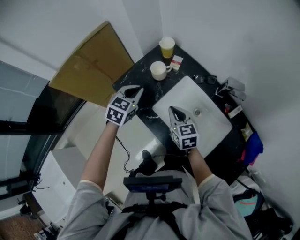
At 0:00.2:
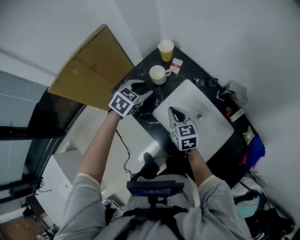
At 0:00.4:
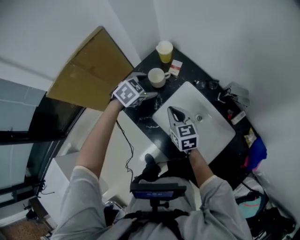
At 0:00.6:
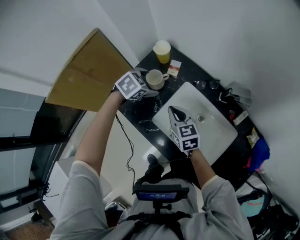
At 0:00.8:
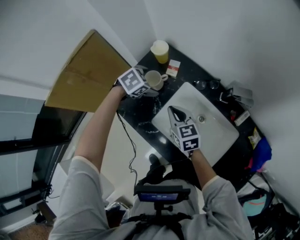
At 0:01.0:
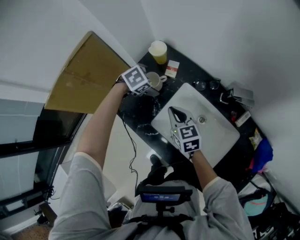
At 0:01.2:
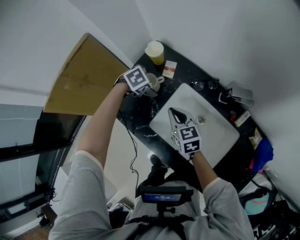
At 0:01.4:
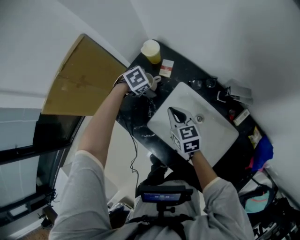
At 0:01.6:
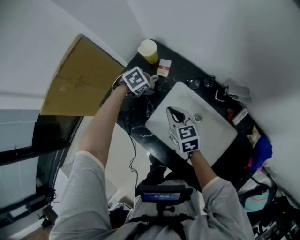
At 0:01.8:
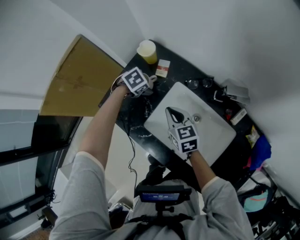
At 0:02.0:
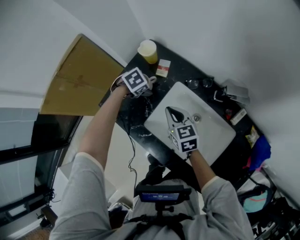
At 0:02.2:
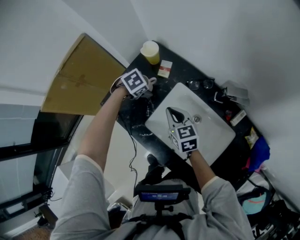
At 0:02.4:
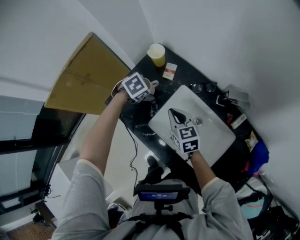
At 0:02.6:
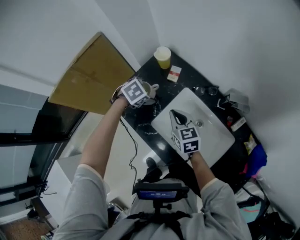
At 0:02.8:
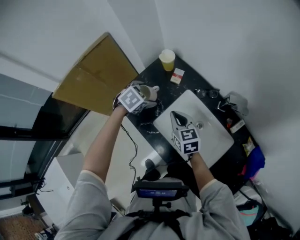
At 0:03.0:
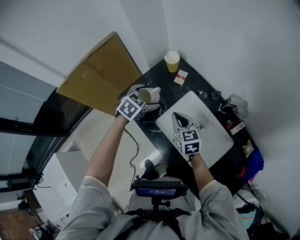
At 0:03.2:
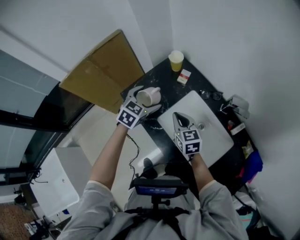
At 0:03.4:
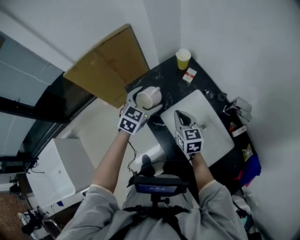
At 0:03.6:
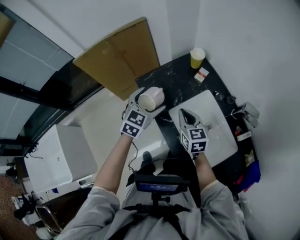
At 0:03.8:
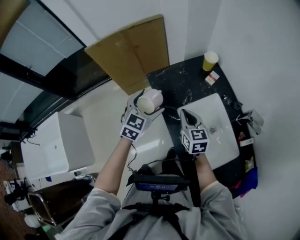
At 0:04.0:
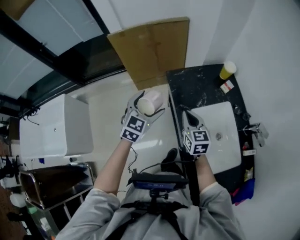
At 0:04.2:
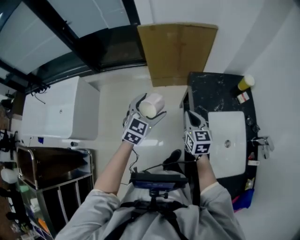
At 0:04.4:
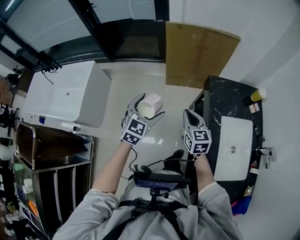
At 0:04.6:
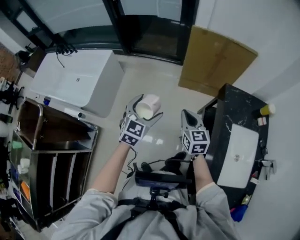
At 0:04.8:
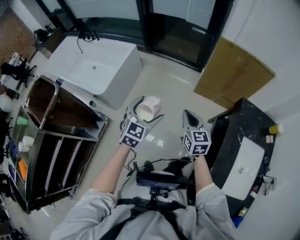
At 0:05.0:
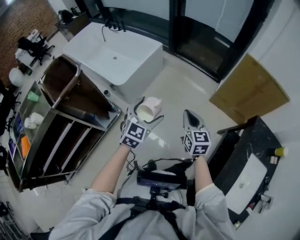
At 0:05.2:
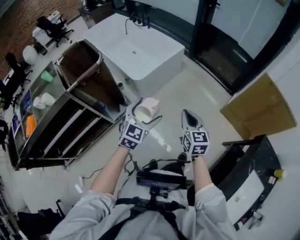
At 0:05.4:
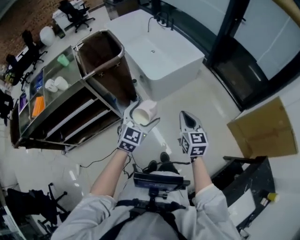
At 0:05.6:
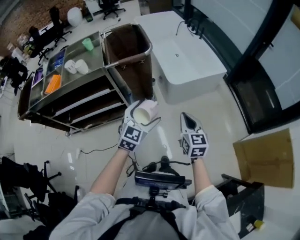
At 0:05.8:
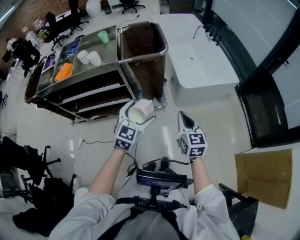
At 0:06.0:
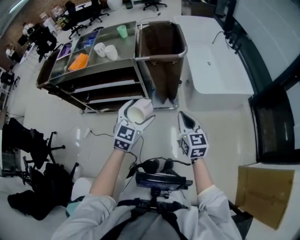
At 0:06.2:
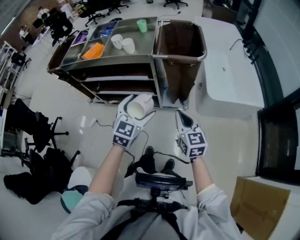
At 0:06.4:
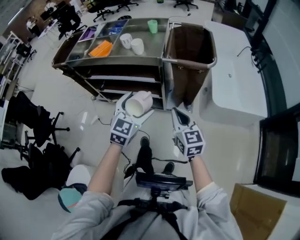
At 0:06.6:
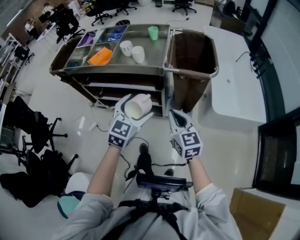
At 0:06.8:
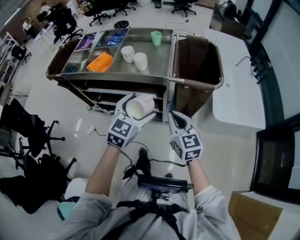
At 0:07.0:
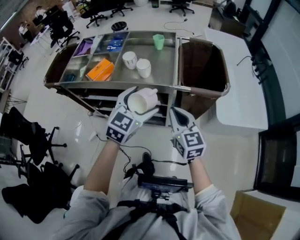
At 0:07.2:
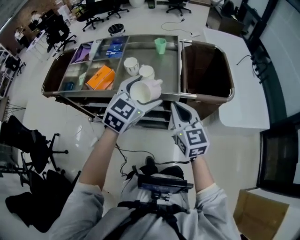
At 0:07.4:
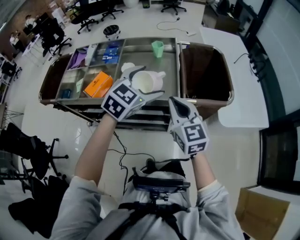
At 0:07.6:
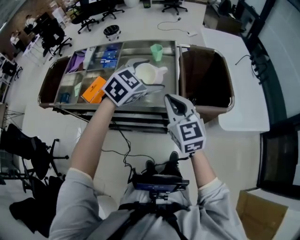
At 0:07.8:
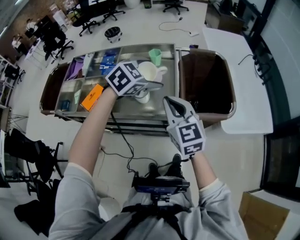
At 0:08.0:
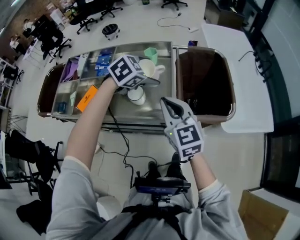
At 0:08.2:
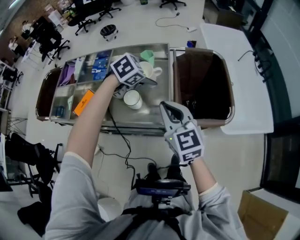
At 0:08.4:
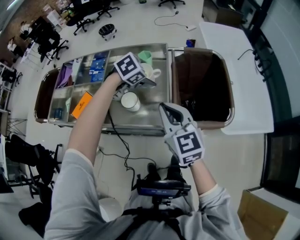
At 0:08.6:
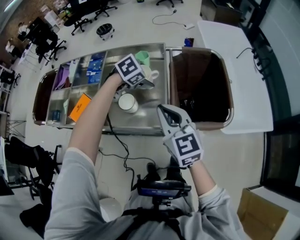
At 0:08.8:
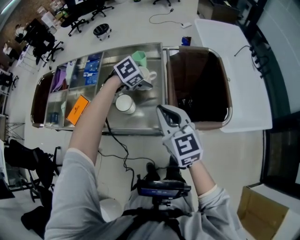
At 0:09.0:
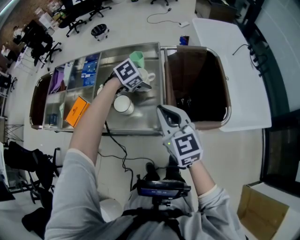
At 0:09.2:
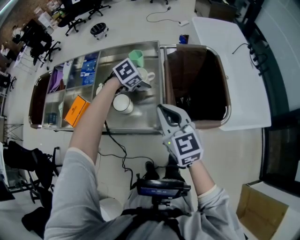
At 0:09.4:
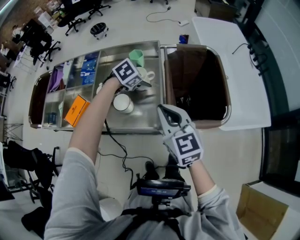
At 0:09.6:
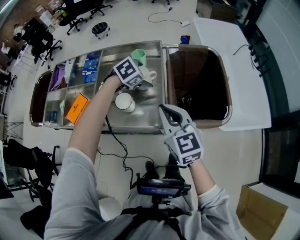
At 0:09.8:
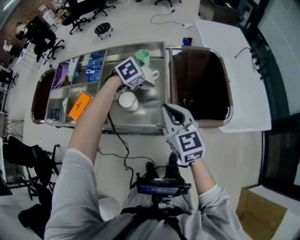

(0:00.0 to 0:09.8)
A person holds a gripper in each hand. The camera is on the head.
0:00.0 - 0:01.4: The left gripper moves downward, roughly 15 cm, tilts its fingers approximately 40 degrees downward, and opens. The right gripper changes place by some 10 cm.
0:01.4 - 0:02.8: The right gripper ends up about 5 cm from where it was; the left gripper moves upward, some 10 cm, and swivels roughly 20 degrees.
0:02.8 - 0:04.2: The right gripper shifts by approximately 25 cm, and swivels roughly 30 degrees, while the left gripper moves roughly 40 cm, and tips its fingers upward by approximately 40 degrees.
0:04.2 - 0:05.6: Both grippers are carried approximately 70 cm. The right gripper rotates about 70 degrees. Meanwhile the left gripper changes its angle by some 80 degrees.
0:05.6 - 0:07.0: The right gripper changes place by some 40 cm, and rotates approximately 40 degrees. Meanwhile the left gripper moves approximately 35 cm, and turns by roughly 20 degrees.
0:07.0 - 0:08.4: The right gripper moves forward, some 20 cm. The left gripper goes roughly 35 cm forward, and angles its fingers downward, by some 40 degrees.

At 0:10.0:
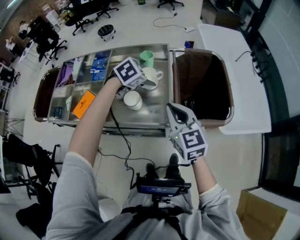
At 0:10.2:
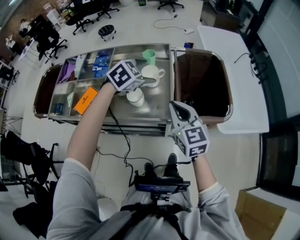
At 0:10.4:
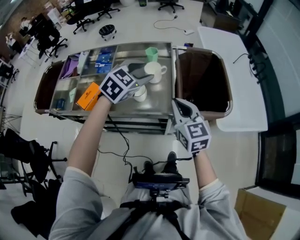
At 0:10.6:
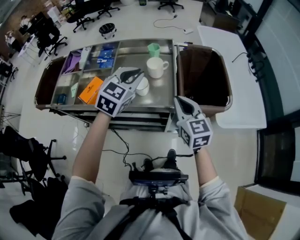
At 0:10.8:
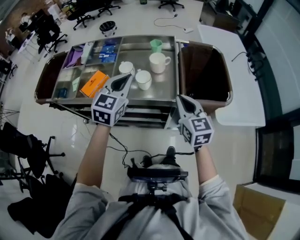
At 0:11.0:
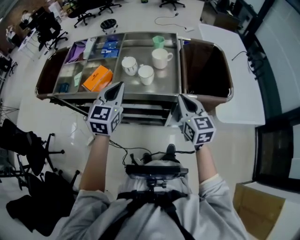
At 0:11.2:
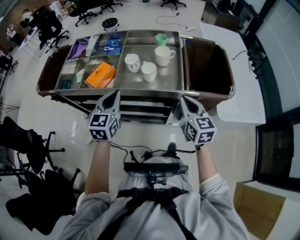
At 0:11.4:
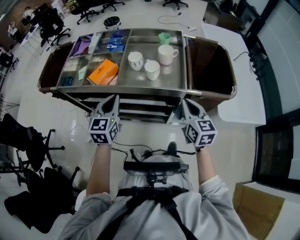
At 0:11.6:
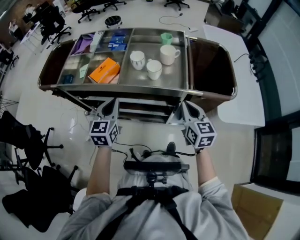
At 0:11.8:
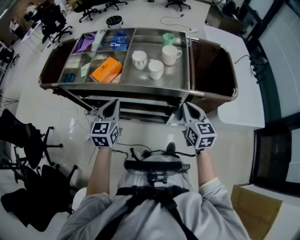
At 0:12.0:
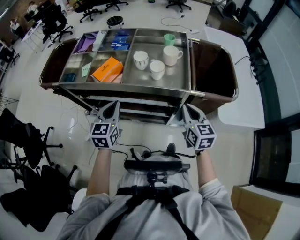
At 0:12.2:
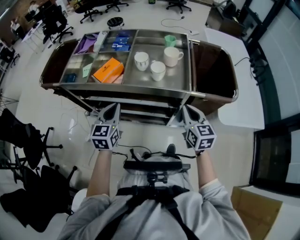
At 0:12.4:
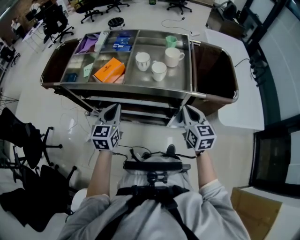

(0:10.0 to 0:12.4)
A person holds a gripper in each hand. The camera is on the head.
0:10.0 - 0:11.2: The left gripper moves backward and to the left, roughly 35 cm, tips its fingers upward by approximately 40 degrees, and closes. Meanwhile the right gripper moves backward, approximately 10 cm.
0:11.2 - 0:12.4: The left gripper moves downward, to the left and backward, about 10 cm.

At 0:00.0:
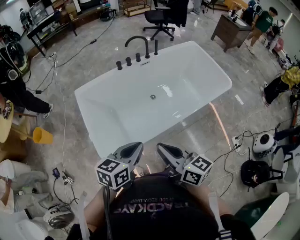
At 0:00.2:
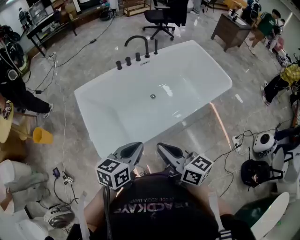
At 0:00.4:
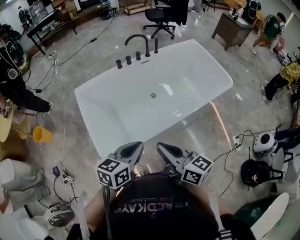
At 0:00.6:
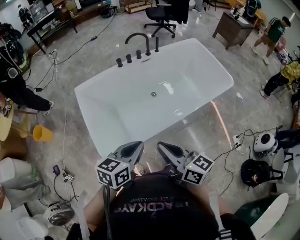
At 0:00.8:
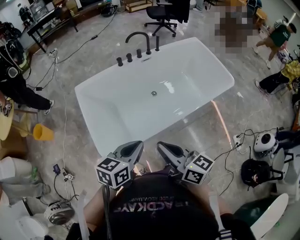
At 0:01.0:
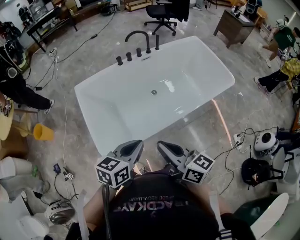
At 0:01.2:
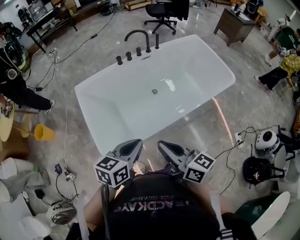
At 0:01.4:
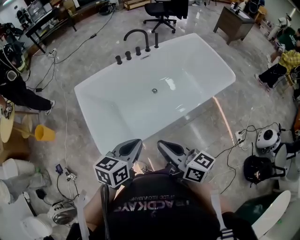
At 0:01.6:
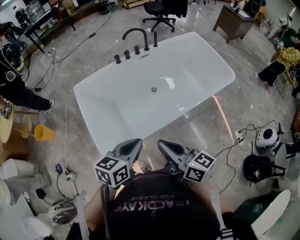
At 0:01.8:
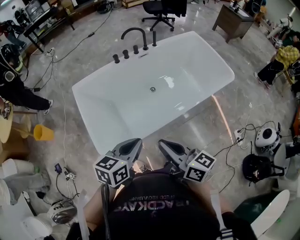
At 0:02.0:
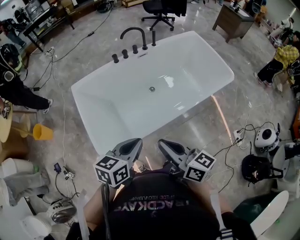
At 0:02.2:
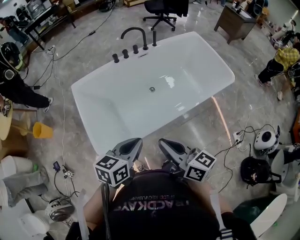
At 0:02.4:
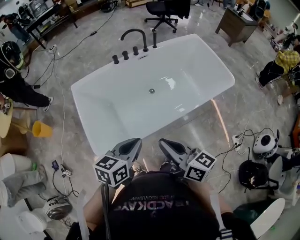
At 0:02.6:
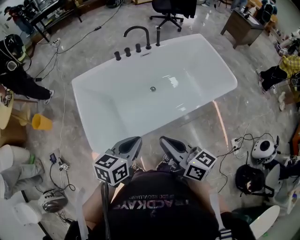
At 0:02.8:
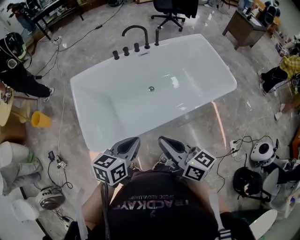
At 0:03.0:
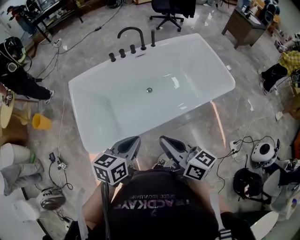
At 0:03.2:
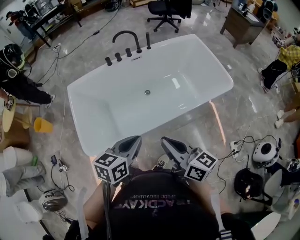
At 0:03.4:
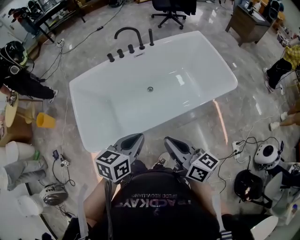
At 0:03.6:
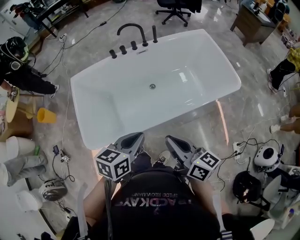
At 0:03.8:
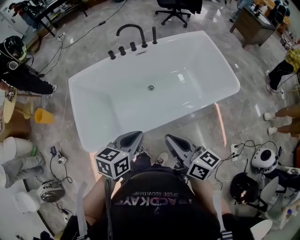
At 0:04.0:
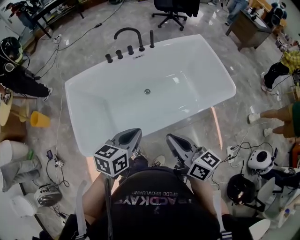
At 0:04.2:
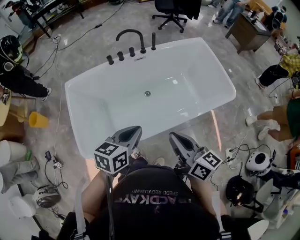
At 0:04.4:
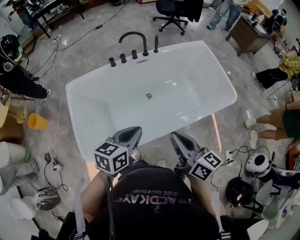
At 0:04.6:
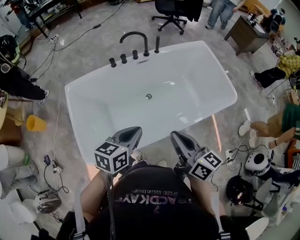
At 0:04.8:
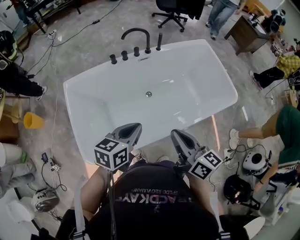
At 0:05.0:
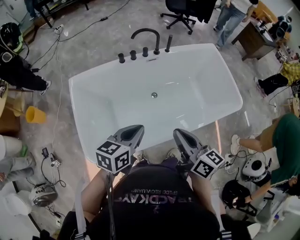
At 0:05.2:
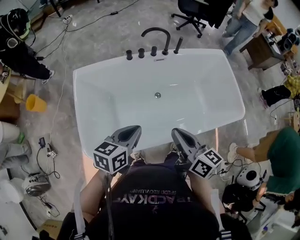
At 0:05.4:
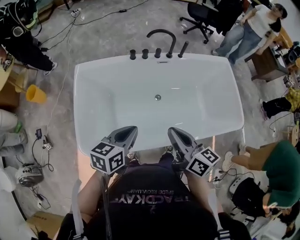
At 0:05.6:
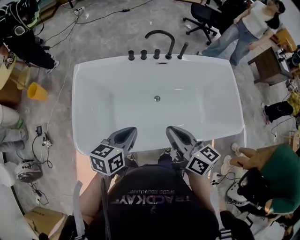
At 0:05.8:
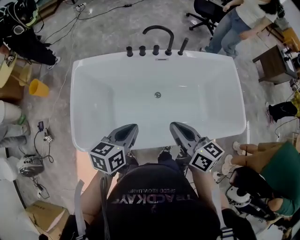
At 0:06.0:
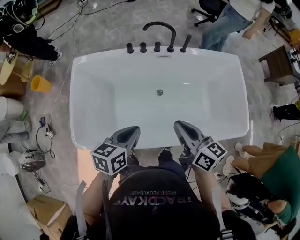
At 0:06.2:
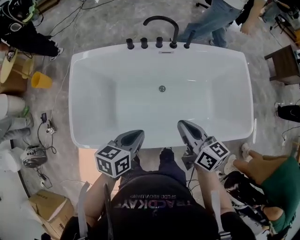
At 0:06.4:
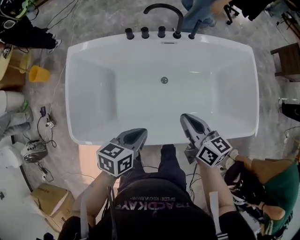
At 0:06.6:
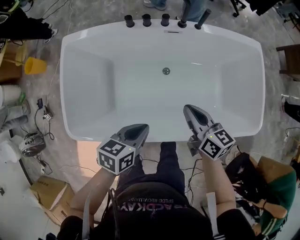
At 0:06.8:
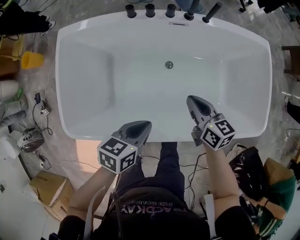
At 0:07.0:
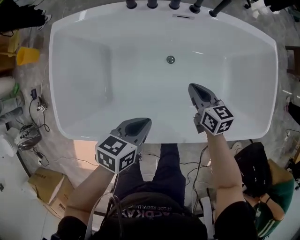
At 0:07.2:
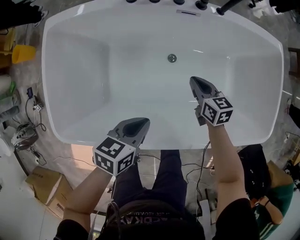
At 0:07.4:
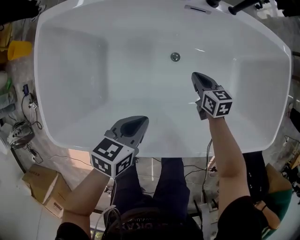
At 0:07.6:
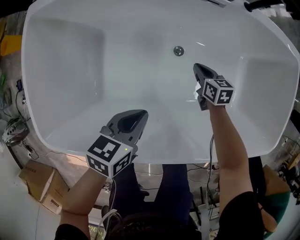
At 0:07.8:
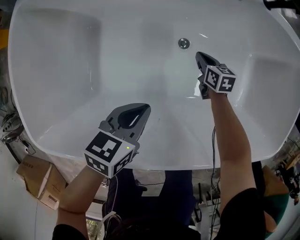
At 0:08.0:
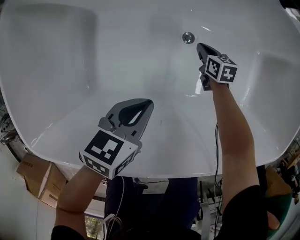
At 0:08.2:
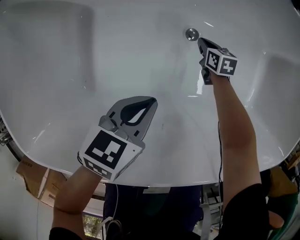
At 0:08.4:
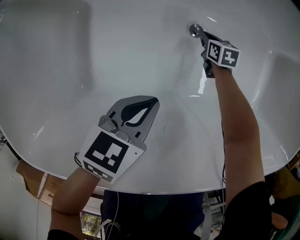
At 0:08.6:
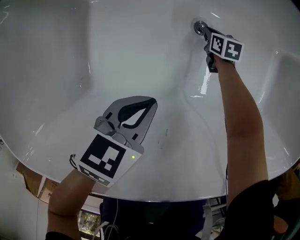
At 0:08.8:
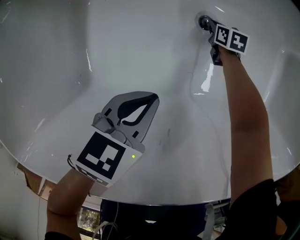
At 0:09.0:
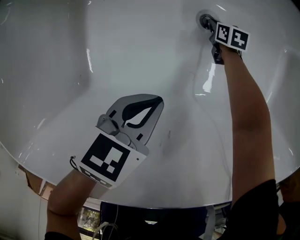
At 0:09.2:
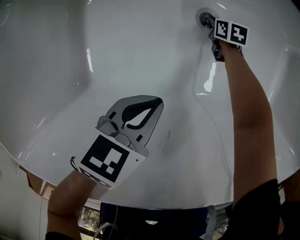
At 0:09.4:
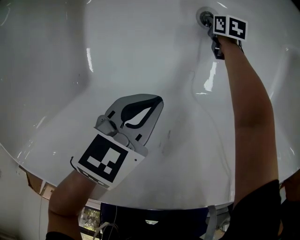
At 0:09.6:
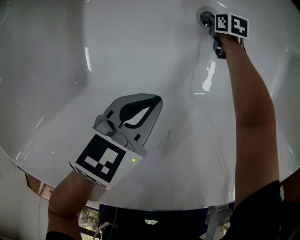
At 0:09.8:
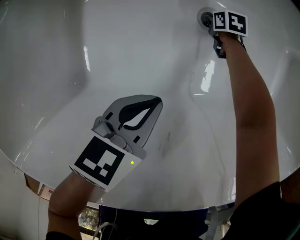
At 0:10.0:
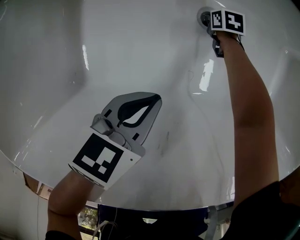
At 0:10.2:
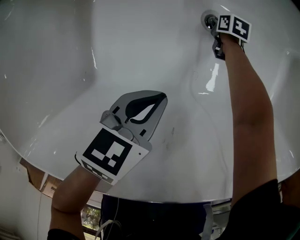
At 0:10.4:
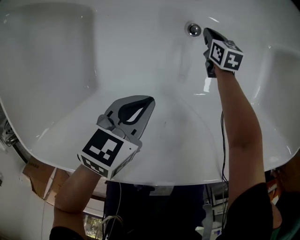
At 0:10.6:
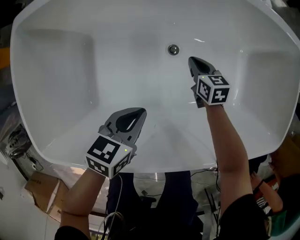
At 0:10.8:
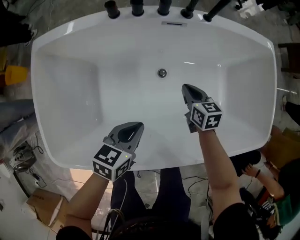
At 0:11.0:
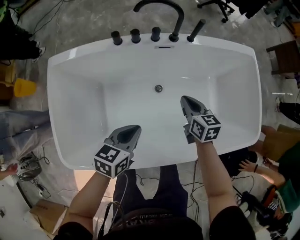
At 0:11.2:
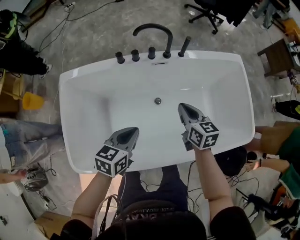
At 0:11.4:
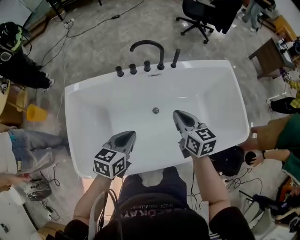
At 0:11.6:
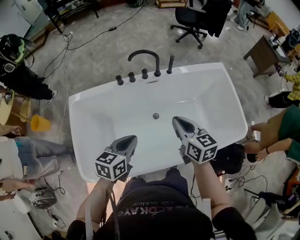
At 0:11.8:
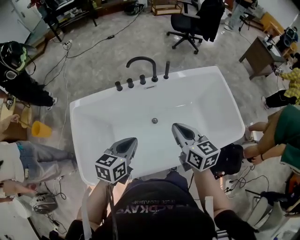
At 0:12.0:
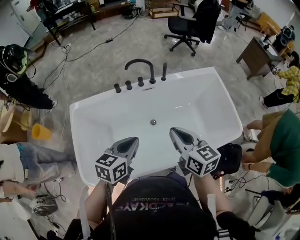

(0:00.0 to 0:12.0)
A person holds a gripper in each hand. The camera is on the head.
0:00.0 - 0:01.6: The grippers move only a little.
0:01.6 - 0:03.0: Both grippers move to the right, about 10 cm.
0:03.0 - 0:04.4: Both grippers move forward, about 10 cm.
0:04.4 - 0:06.0: The right gripper shifts approximately 15 cm forward, and changes its angle by approximately 20 degrees, while the left gripper heads forward, covering roughly 5 cm, travels to the left and back again, about 5 cm each way, and rotates some 20 degrees.
0:06.0 - 0:07.6: The right gripper travels downward and forward by some 50 cm, and angles its fingers downward, by some 30 degrees. Meanwhile the left gripper heads downward, covering some 25 cm.
0:07.6 - 0:09.0: The right gripper travels downward by roughly 30 cm; the left gripper moves downward, approximately 15 cm.
0:09.0 - 0:10.4: The left gripper is displaced upward by some 5 cm. The right gripper heads upward, covering about 10 cm.
0:10.4 - 0:12.0: The right gripper goes about 70 cm upward, and tips its fingers upward by roughly 30 degrees. Meanwhile the left gripper goes some 50 cm upward, and rotates some 30 degrees.
